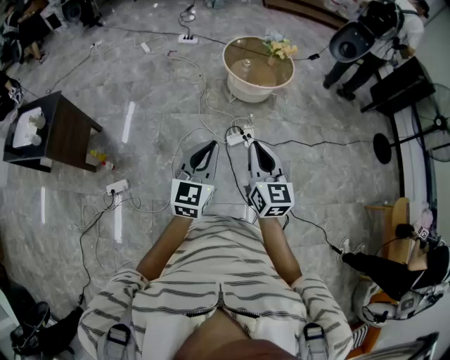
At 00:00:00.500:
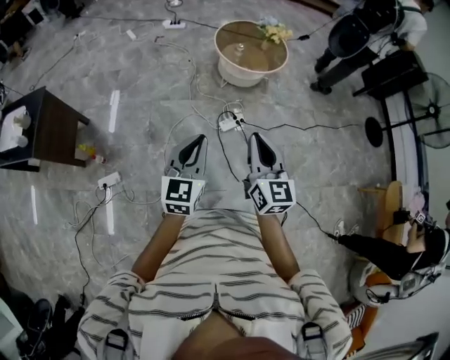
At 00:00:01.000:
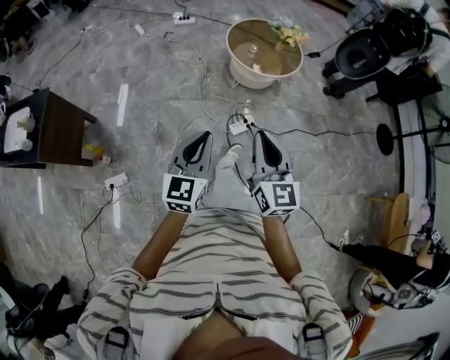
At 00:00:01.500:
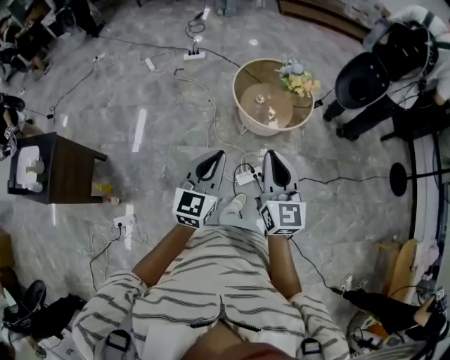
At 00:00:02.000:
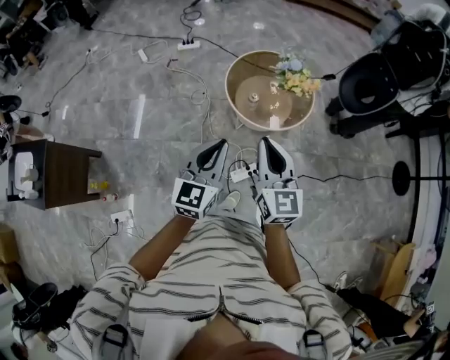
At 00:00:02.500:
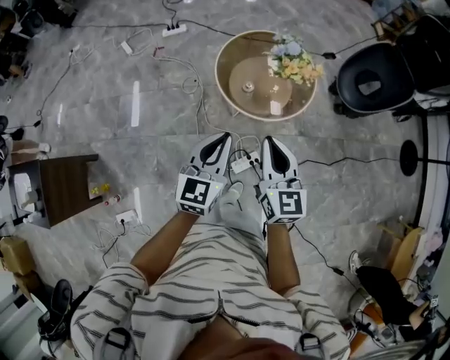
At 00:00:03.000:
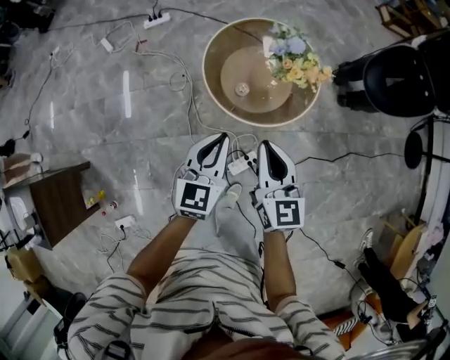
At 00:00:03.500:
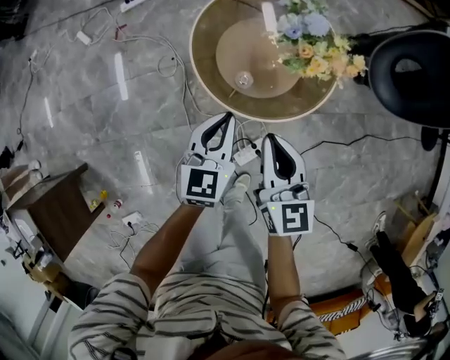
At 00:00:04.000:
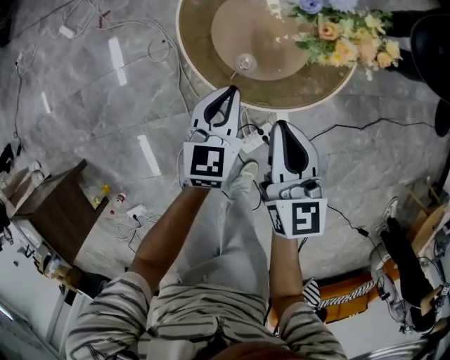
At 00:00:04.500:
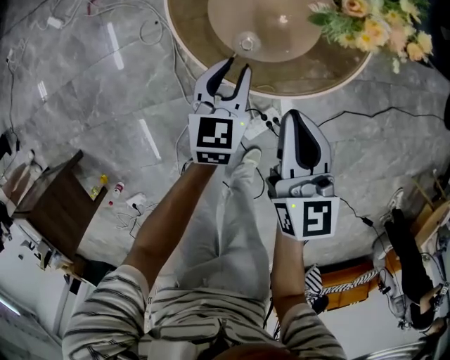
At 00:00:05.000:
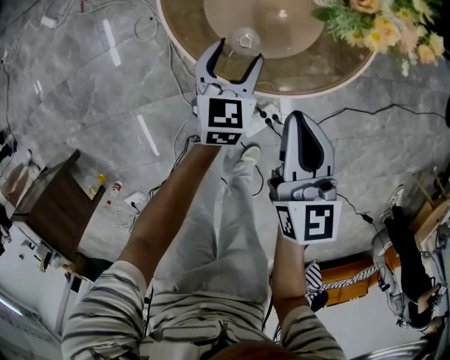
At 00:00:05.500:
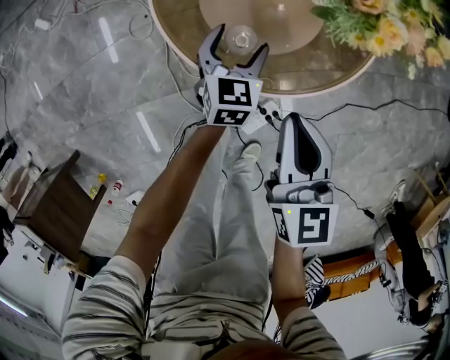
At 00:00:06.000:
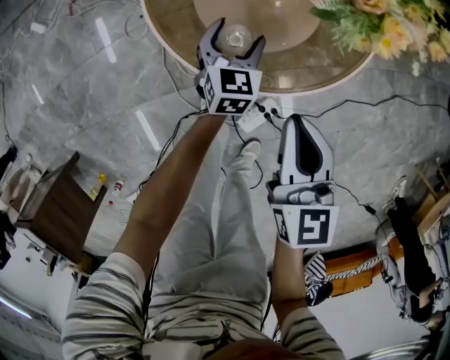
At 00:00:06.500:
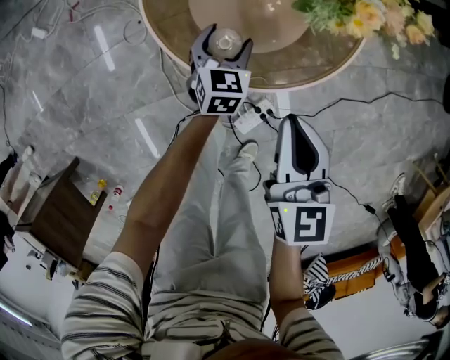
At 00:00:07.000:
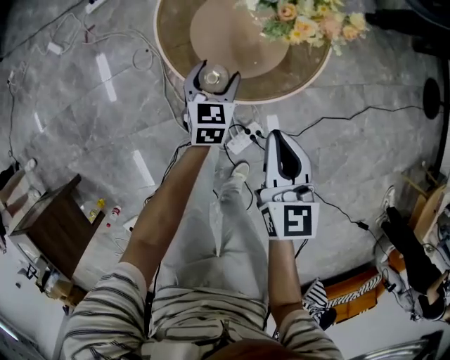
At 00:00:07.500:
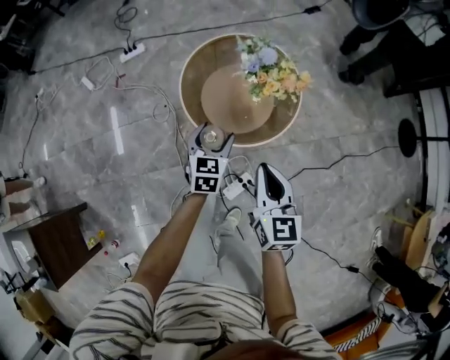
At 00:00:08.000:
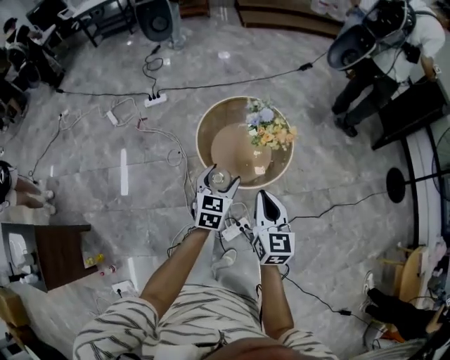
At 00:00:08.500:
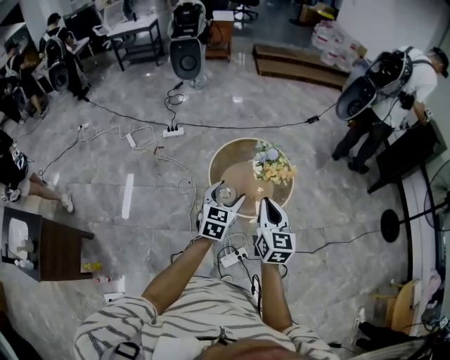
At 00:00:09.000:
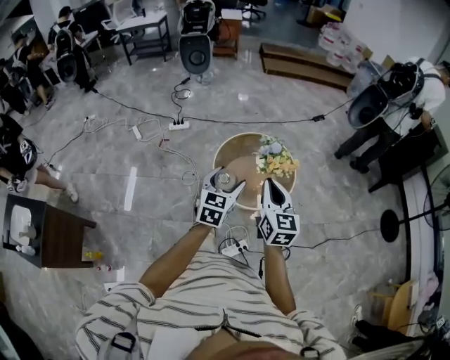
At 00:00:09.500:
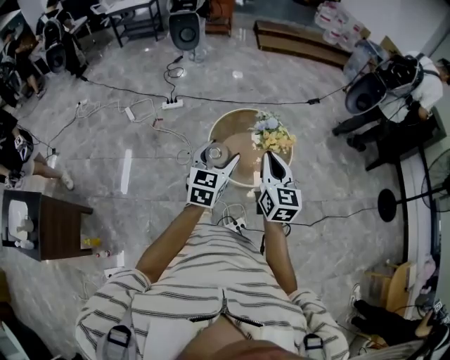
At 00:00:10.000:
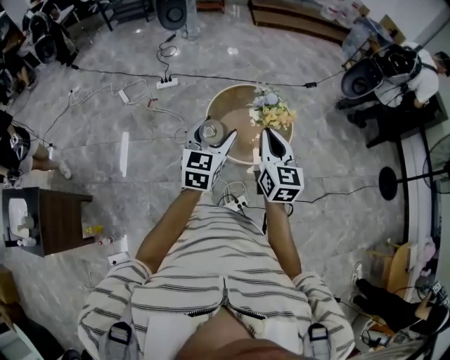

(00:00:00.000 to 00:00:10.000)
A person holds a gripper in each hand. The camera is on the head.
00:00:00.000 - 00:00:02.000: Both grippers are carried forward, some 50 cm.
00:00:02.000 - 00:00:04.000: Both grippers travel together downward and forward, some 50 cm. The right gripper turns by approximately 20 degrees. Meanwhile the left gripper changes its angle by about 20 degrees.
00:00:04.000 - 00:00:06.000: The right gripper moves downward, about 10 cm; the left gripper moves downward, approximately 20 cm, and opens.
00:00:06.000 - 00:00:08.000: The right gripper travels upward by some 35 cm. The left gripper is displaced upward and backward by about 50 cm.
00:00:08.000 - 00:00:10.000: Both grippers move upward, some 15 cm.

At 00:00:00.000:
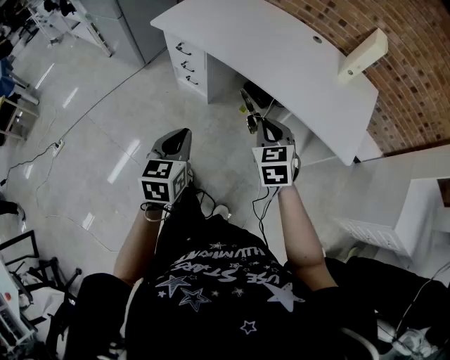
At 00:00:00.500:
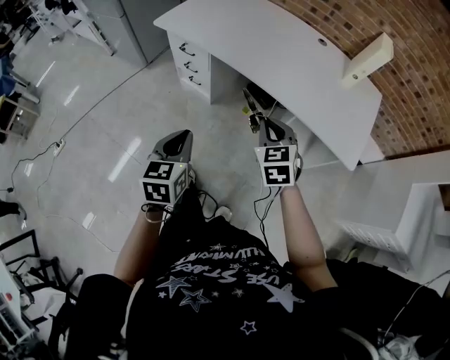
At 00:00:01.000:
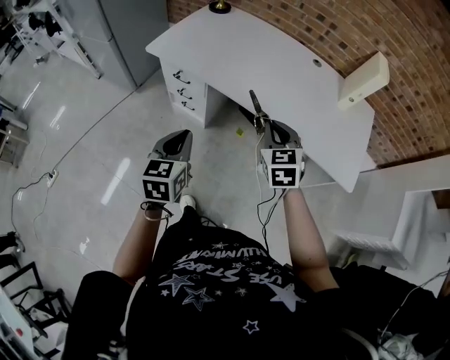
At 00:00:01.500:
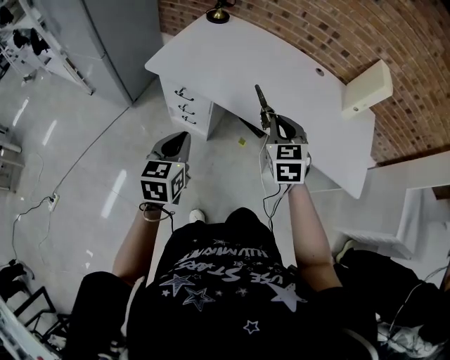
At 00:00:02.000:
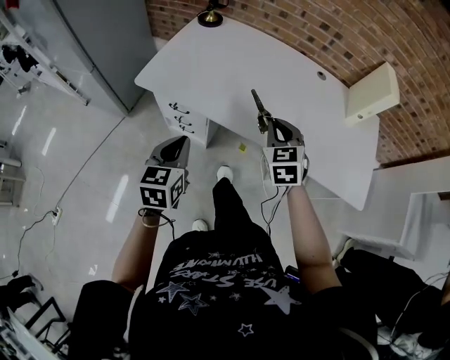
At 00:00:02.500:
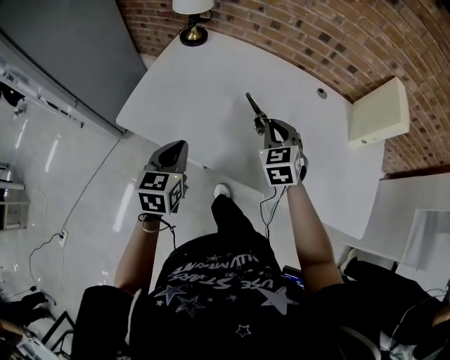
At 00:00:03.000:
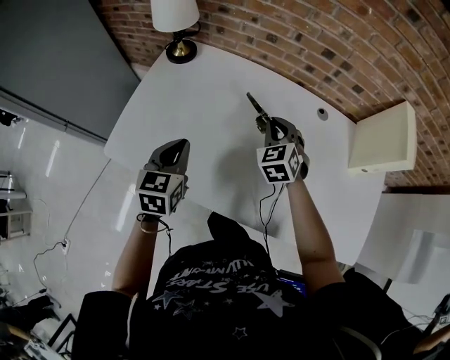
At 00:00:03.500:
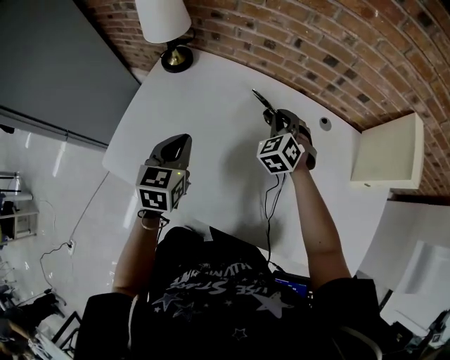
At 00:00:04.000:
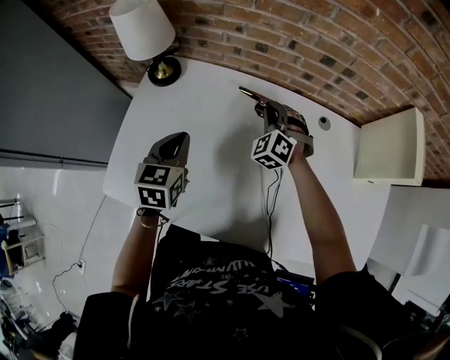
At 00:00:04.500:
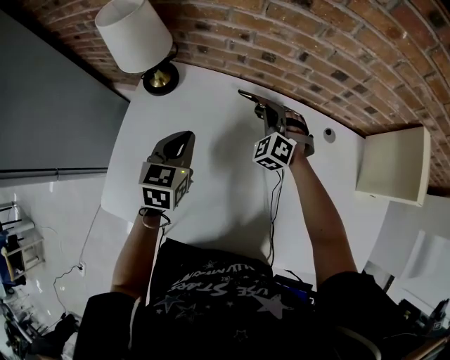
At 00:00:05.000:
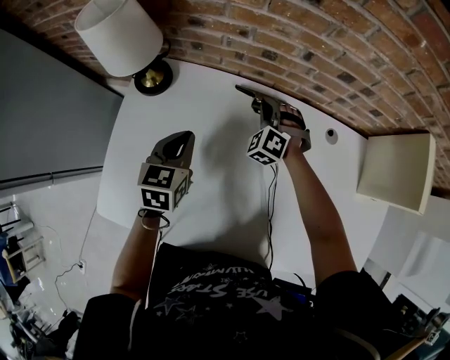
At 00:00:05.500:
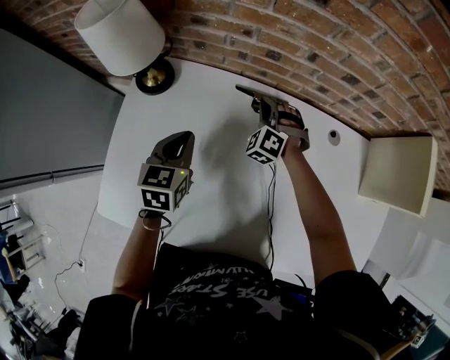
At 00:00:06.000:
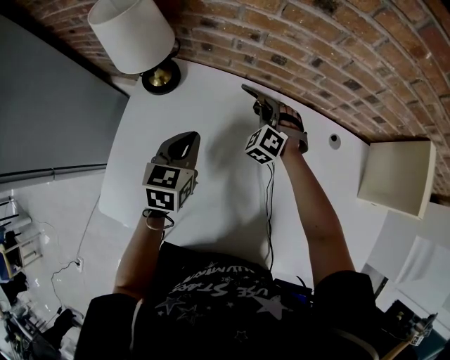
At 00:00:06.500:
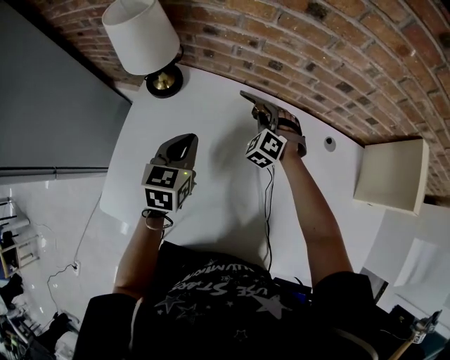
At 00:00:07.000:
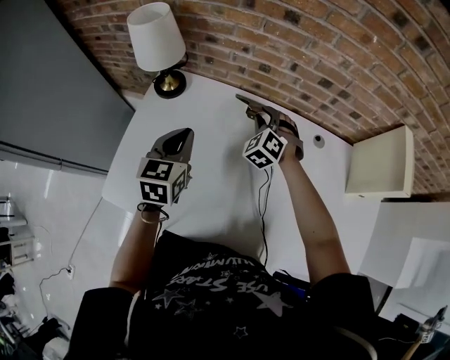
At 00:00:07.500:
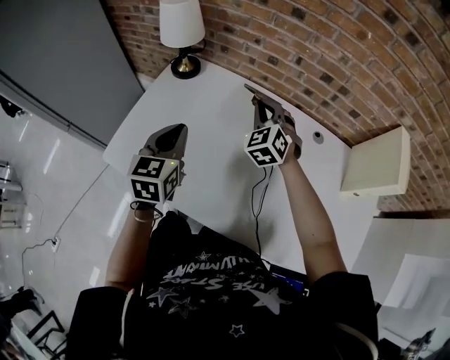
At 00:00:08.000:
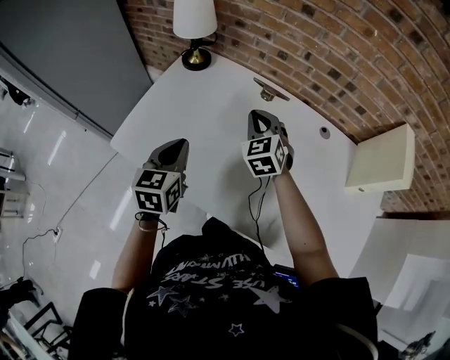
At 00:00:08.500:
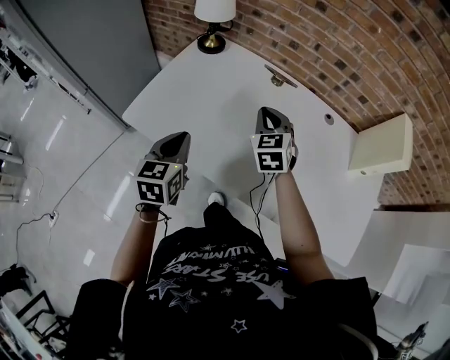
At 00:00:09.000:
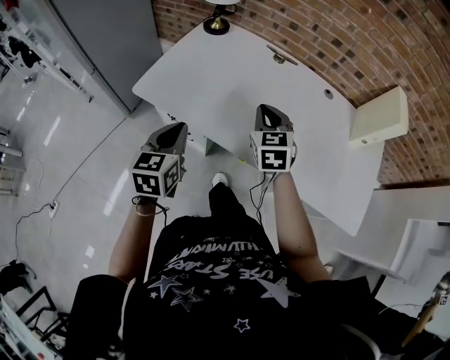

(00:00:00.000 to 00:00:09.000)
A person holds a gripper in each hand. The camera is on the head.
00:00:00.000 - 00:00:02.000: Both grippers move forward and to the left, approximately 30 cm.
00:00:02.000 - 00:00:04.500: The two grippers travel together, forward, about 50 cm. The right gripper changes its angle by approximately 40 degrees.
00:00:04.500 - 00:00:07.000: The right gripper shifts by roughly 5 cm, and opens up, while the left gripper goes some 5 cm upward.
00:00:07.000 - 00:00:09.000: The two grippers go approximately 35 cm backward. The right gripper changes its angle by approximately 40 degrees, and closes up.

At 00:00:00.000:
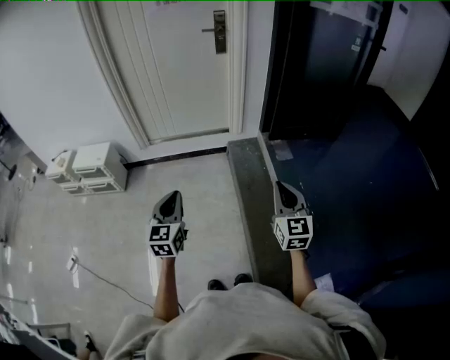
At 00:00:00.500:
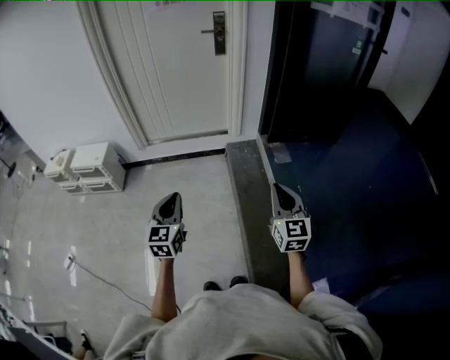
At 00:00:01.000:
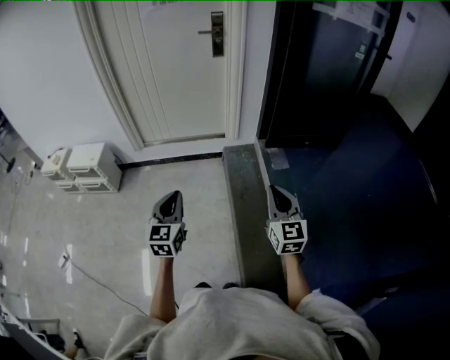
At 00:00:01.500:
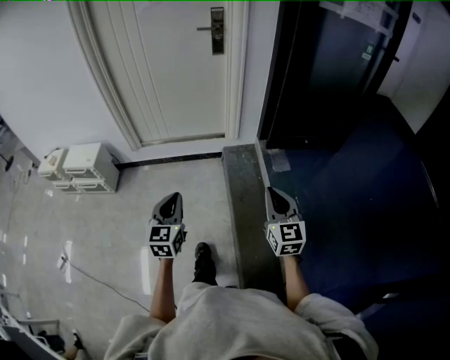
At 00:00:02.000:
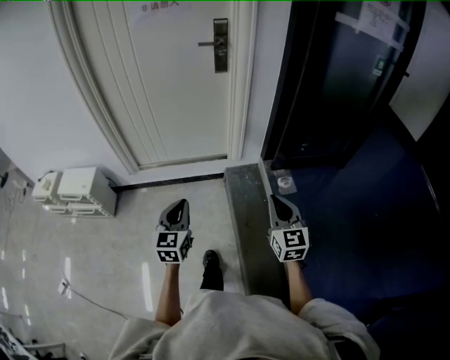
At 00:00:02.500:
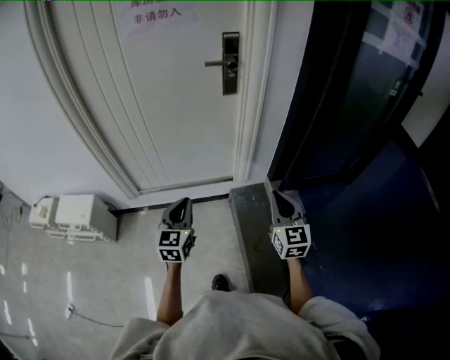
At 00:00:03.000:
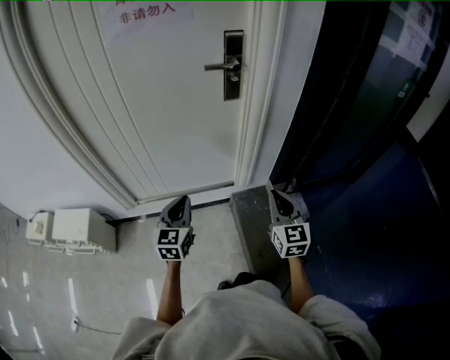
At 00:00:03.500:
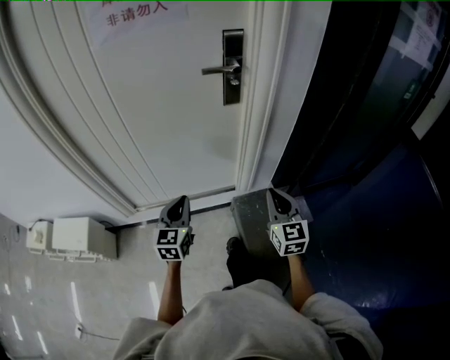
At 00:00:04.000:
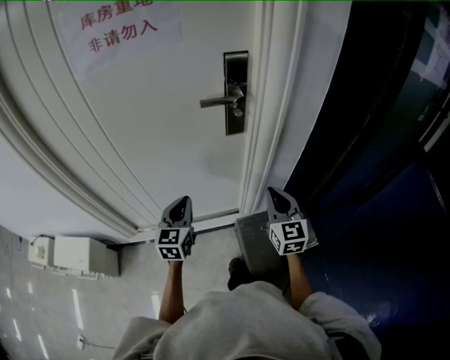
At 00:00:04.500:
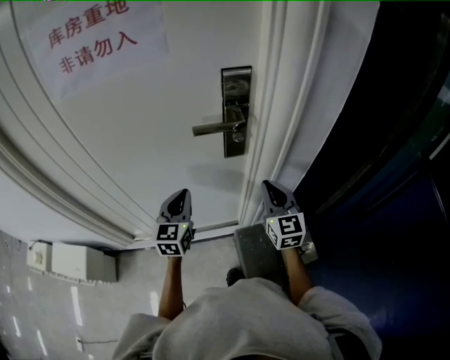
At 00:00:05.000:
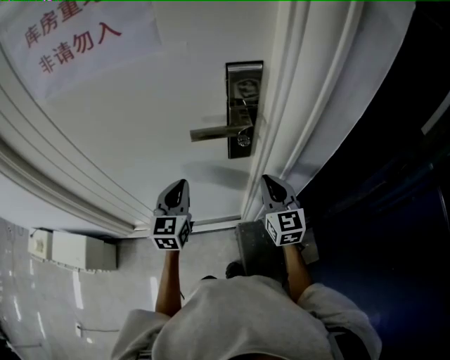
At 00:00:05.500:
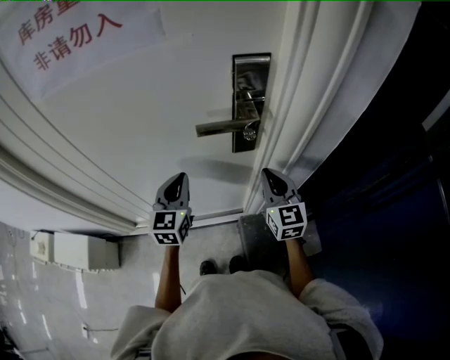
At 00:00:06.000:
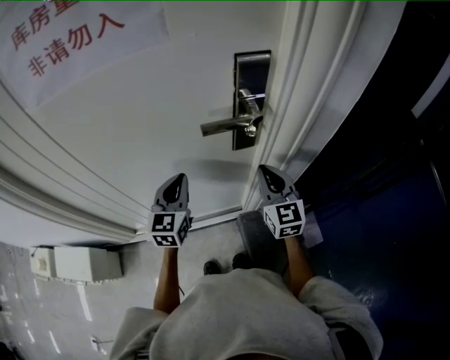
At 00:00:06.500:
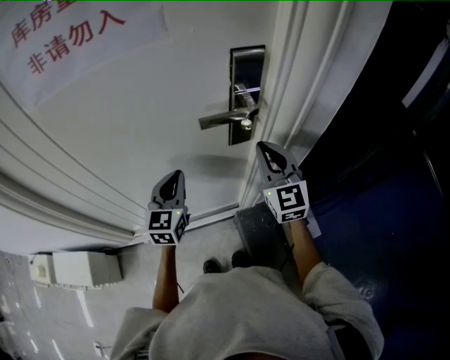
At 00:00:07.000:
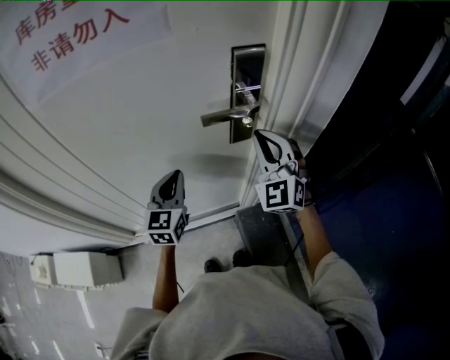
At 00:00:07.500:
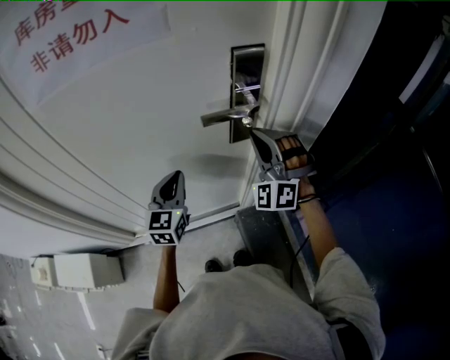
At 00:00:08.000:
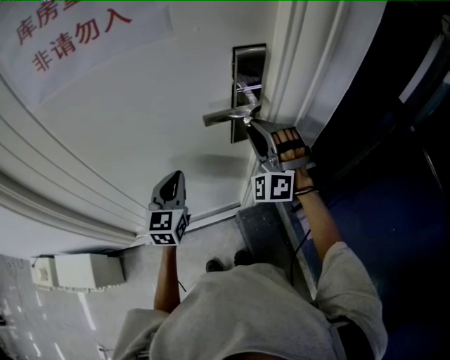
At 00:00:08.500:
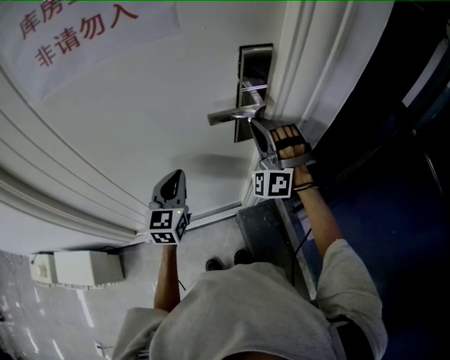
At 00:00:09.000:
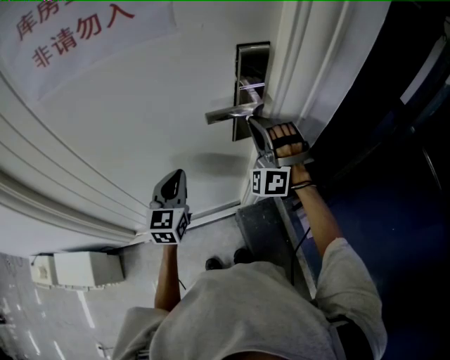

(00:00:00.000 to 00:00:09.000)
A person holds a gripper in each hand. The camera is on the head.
00:00:00.000 - 00:00:02.000: Both grippers travel together forward, some 30 cm.
00:00:02.000 - 00:00:04.500: The pair of grippers is taken forward, some 70 cm.
00:00:04.500 - 00:00:07.000: The left gripper shifts by approximately 5 cm; the right gripper is displaced upward, to the left and forward by about 15 cm, and rolls counterclockwise, seen from behind, by roughly 40 degrees.
00:00:07.000 - 00:00:09.000: The right gripper changes place by some 5 cm, and swivels some 40 degrees.
